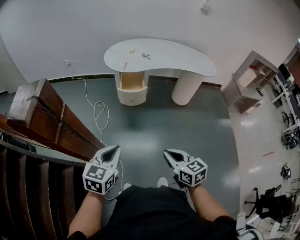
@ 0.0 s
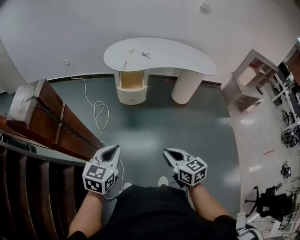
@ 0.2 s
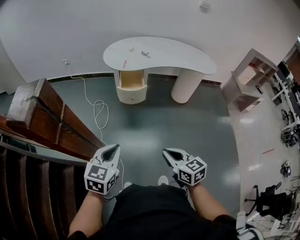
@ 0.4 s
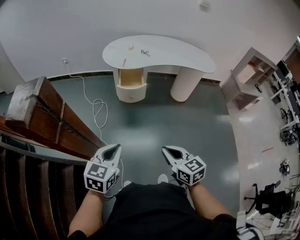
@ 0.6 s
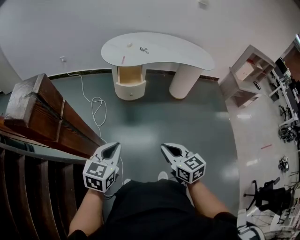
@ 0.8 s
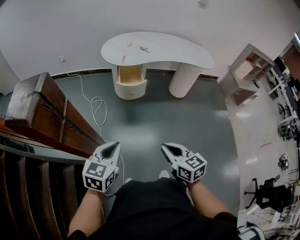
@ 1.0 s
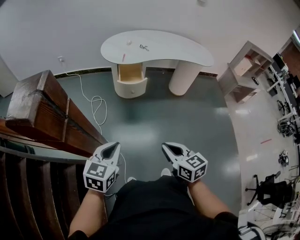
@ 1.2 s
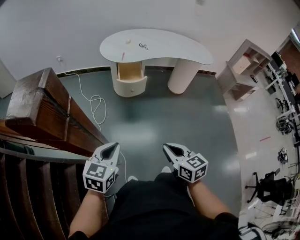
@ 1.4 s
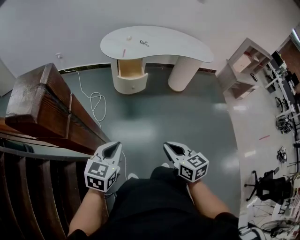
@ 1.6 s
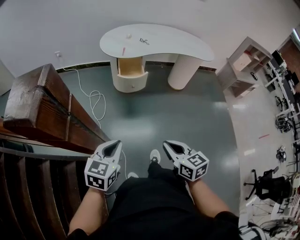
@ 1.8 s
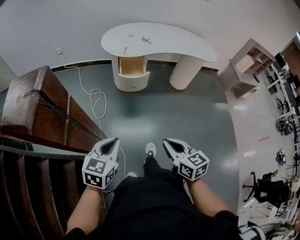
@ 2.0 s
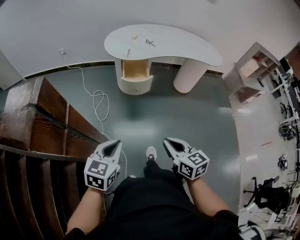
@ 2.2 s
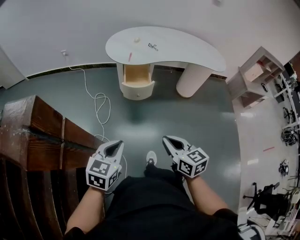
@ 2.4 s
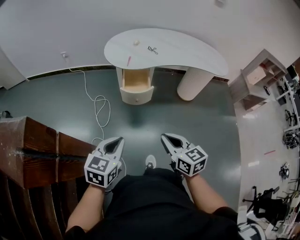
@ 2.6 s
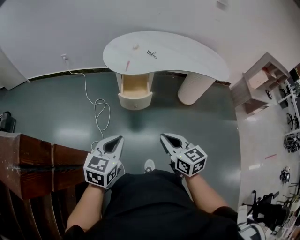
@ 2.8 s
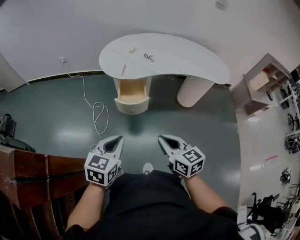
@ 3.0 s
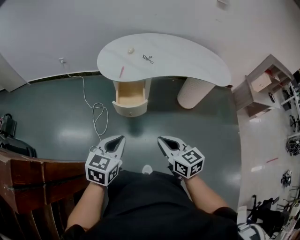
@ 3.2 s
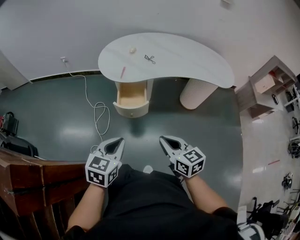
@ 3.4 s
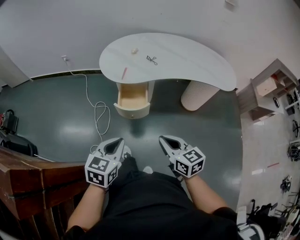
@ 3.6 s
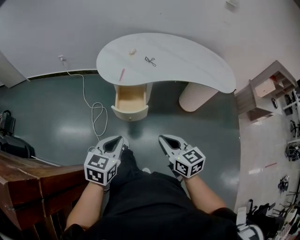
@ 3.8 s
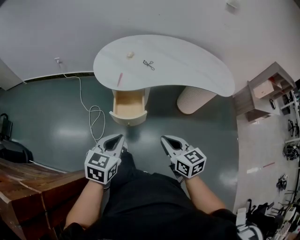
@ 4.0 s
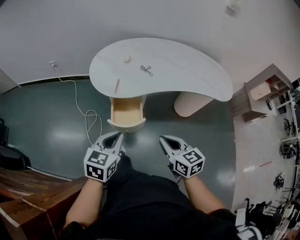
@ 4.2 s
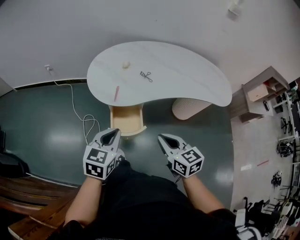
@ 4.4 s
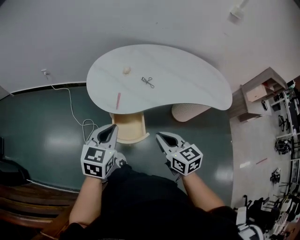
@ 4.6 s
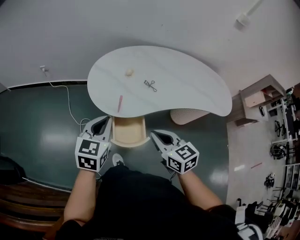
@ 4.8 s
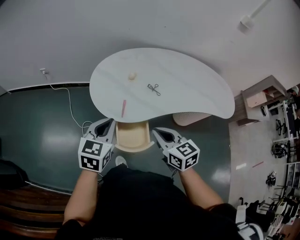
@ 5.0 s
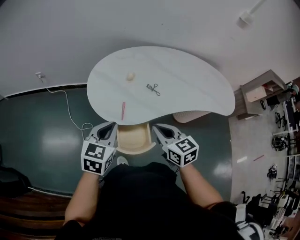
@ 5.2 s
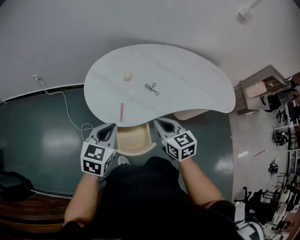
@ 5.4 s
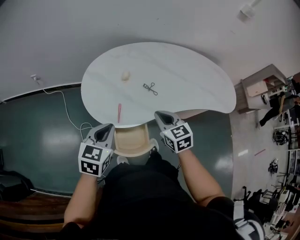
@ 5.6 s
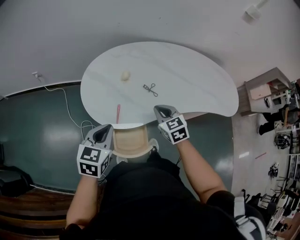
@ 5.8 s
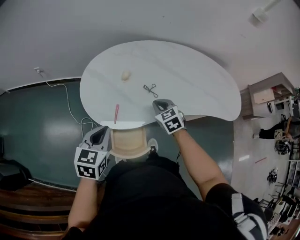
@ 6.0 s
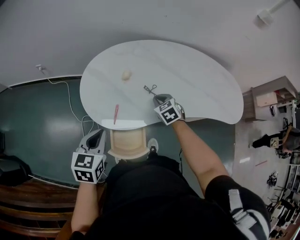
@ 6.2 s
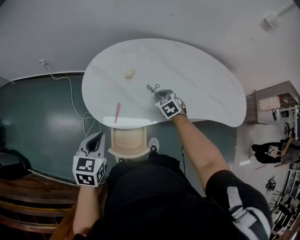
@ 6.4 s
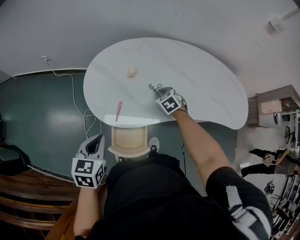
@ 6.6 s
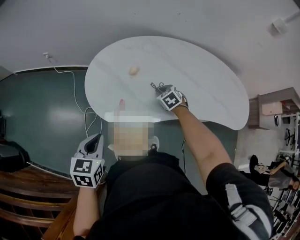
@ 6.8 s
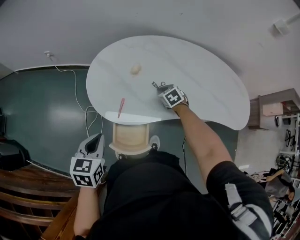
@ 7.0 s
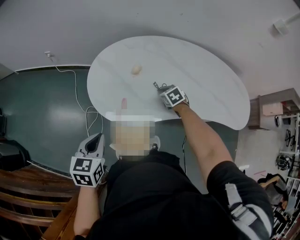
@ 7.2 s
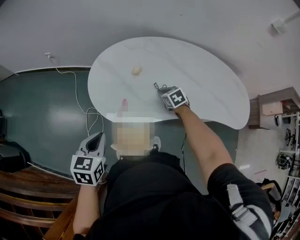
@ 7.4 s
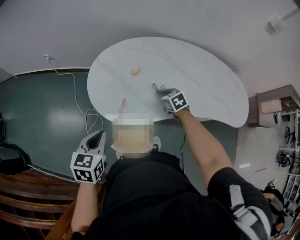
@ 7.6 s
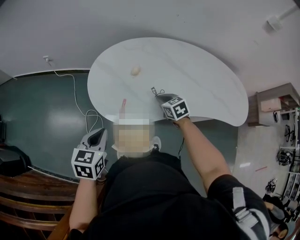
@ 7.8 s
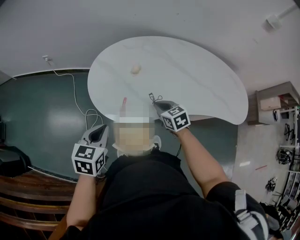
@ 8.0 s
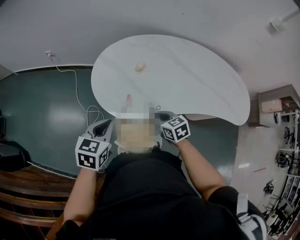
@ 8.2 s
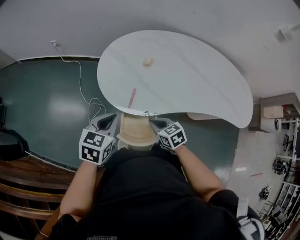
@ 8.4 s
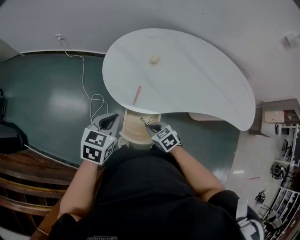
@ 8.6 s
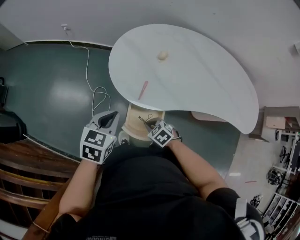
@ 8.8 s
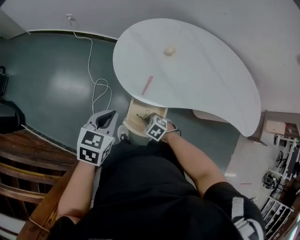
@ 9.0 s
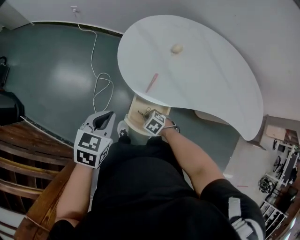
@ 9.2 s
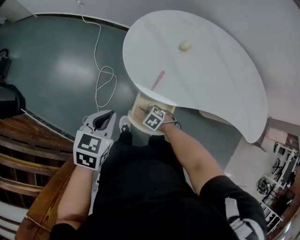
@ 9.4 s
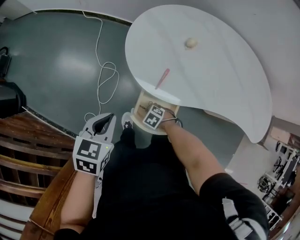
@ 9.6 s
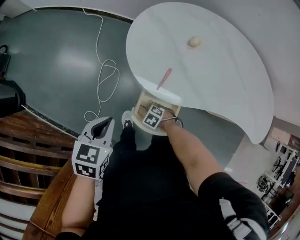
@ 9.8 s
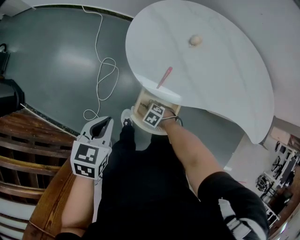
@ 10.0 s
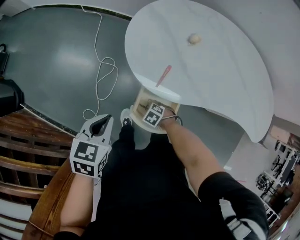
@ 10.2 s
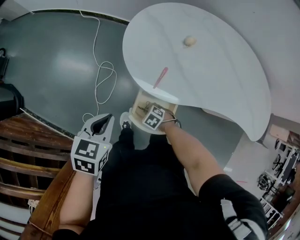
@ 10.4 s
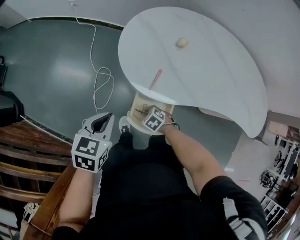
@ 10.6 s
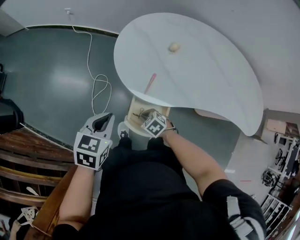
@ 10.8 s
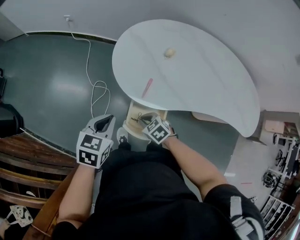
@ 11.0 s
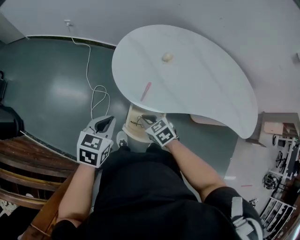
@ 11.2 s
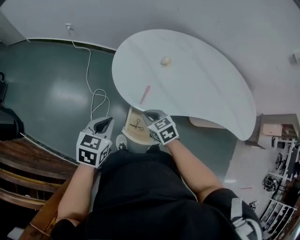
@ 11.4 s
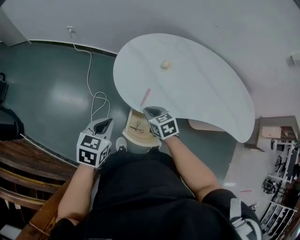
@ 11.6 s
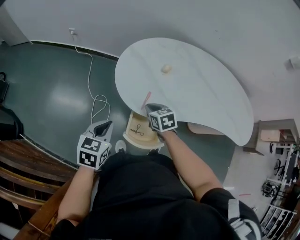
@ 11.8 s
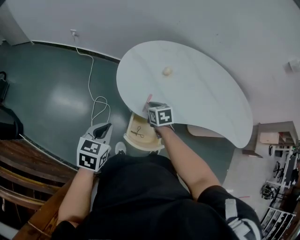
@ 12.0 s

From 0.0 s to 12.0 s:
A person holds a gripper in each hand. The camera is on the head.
From 0.0 s to 1.6 s: The grippers both shift to the left by about 5 cm.
From 1.6 s to 3.0 s: Both grippers travel together forward, about 25 cm.
From 3.0 s to 4.4 s: Both grippers travel together forward, roughly 25 cm.
From 4.4 s to 6.0 s: The left gripper goes about 20 cm forward. The right gripper shifts approximately 35 cm forward, and changes its angle by some 30 degrees.
From 6.0 s to 7.6 s: The left gripper changes place by some 5 cm. The right gripper moves downward and forward, approximately 10 cm.
From 7.6 s to 9.0 s: The left gripper changes place by roughly 5 cm; the right gripper travels to the left, backward and downward by approximately 30 cm, and turns by approximately 40 degrees.
From 9.0 s to 10.4 s: The left gripper shifts by roughly 5 cm, while the right gripper travels downward by roughly 10 cm.
From 10.4 s to 12.0 s: The right gripper goes some 20 cm upward, and rotates some 50 degrees. The left gripper heads upward, covering roughly 5 cm.

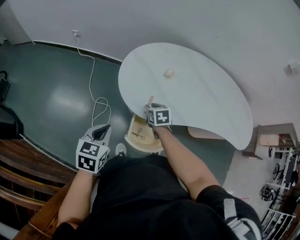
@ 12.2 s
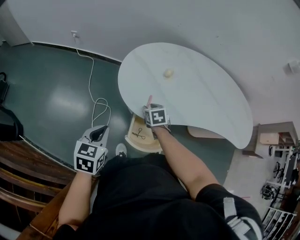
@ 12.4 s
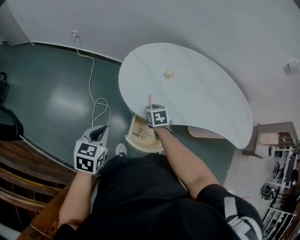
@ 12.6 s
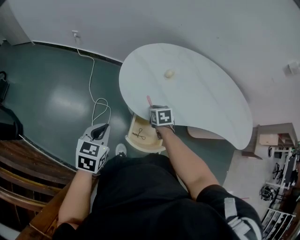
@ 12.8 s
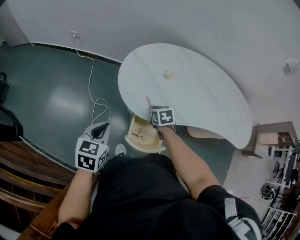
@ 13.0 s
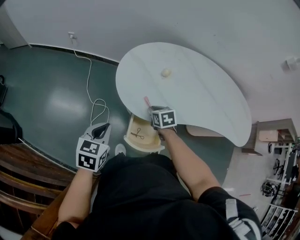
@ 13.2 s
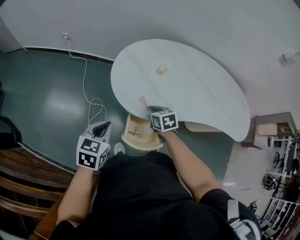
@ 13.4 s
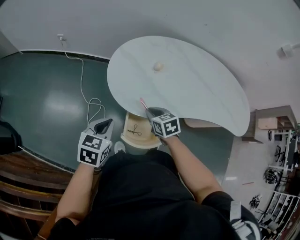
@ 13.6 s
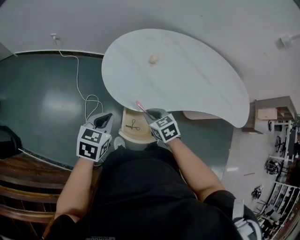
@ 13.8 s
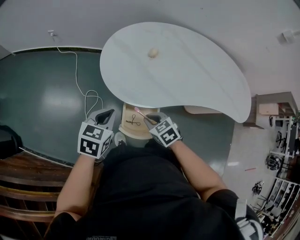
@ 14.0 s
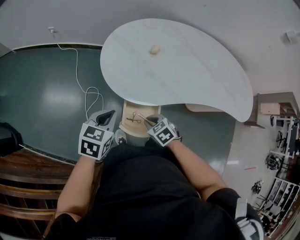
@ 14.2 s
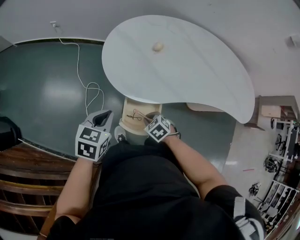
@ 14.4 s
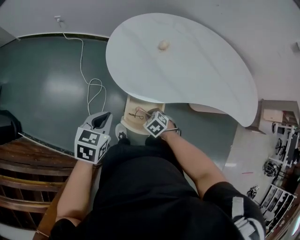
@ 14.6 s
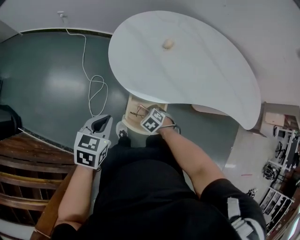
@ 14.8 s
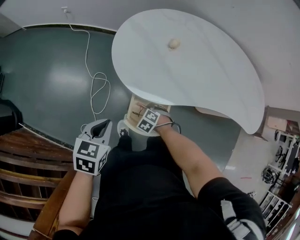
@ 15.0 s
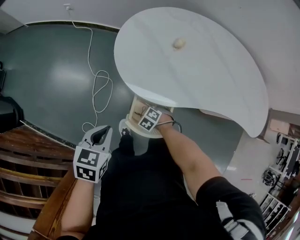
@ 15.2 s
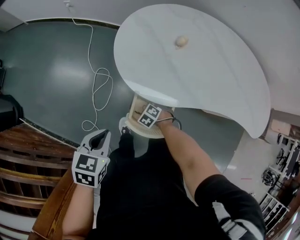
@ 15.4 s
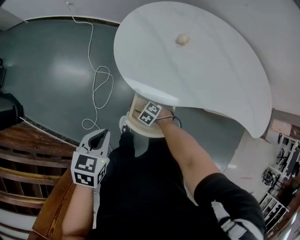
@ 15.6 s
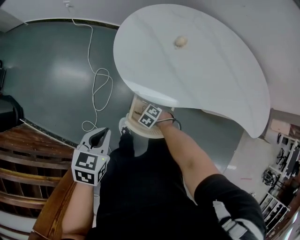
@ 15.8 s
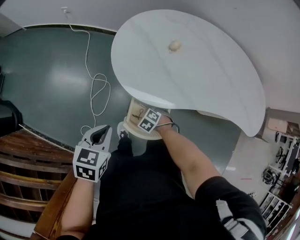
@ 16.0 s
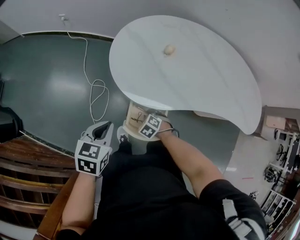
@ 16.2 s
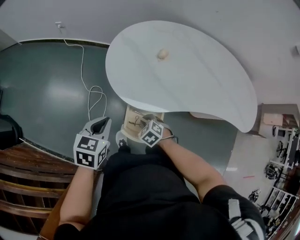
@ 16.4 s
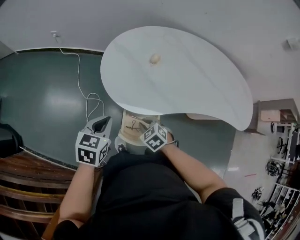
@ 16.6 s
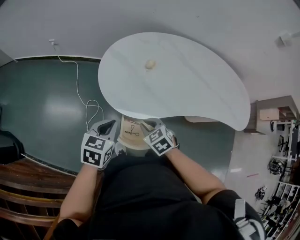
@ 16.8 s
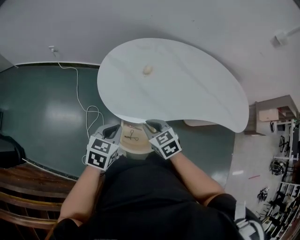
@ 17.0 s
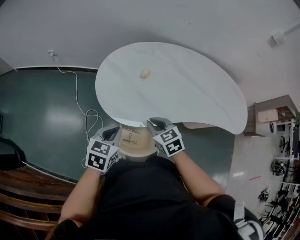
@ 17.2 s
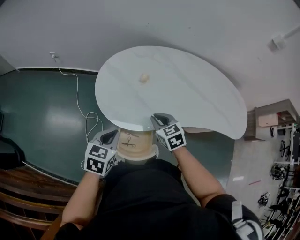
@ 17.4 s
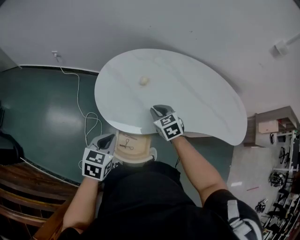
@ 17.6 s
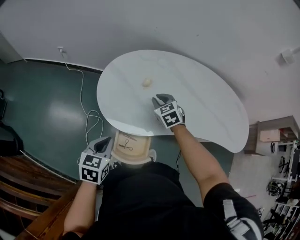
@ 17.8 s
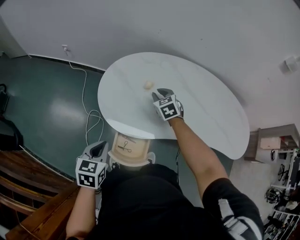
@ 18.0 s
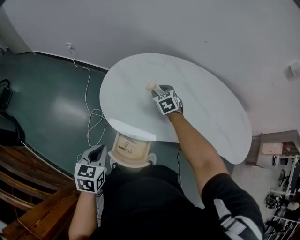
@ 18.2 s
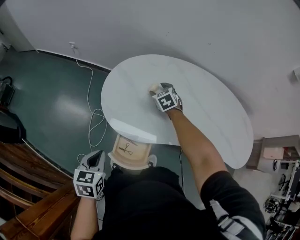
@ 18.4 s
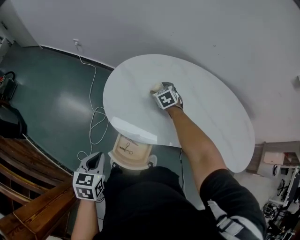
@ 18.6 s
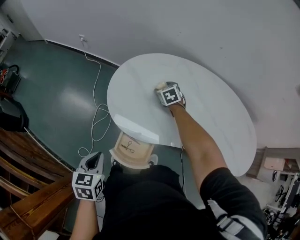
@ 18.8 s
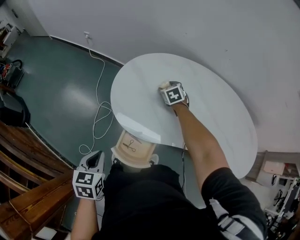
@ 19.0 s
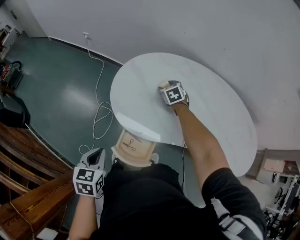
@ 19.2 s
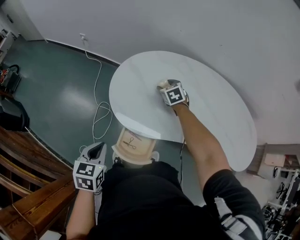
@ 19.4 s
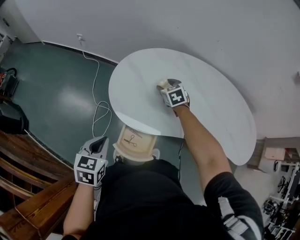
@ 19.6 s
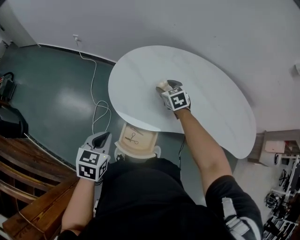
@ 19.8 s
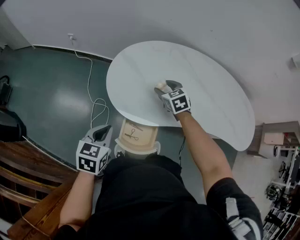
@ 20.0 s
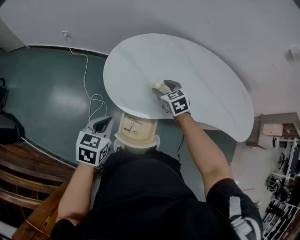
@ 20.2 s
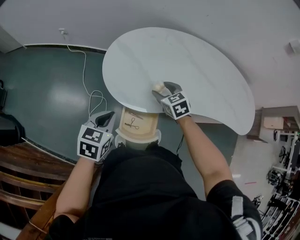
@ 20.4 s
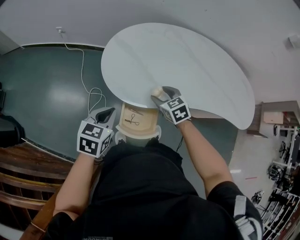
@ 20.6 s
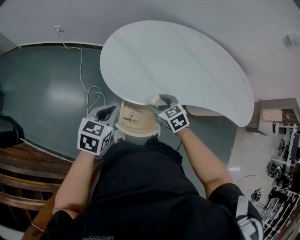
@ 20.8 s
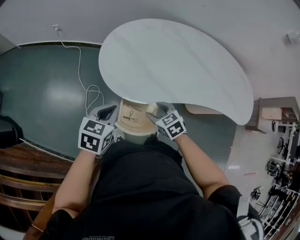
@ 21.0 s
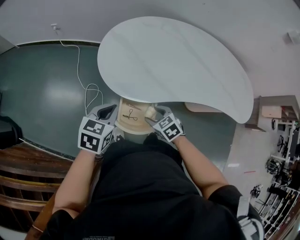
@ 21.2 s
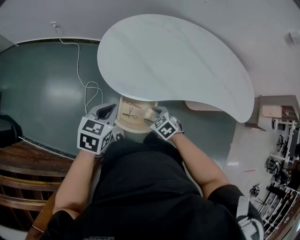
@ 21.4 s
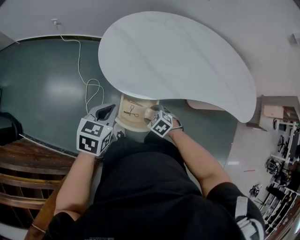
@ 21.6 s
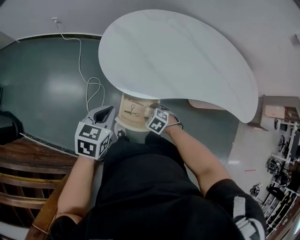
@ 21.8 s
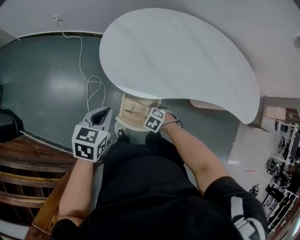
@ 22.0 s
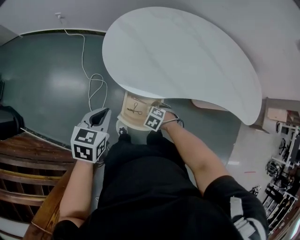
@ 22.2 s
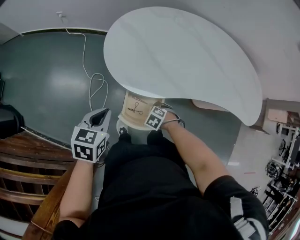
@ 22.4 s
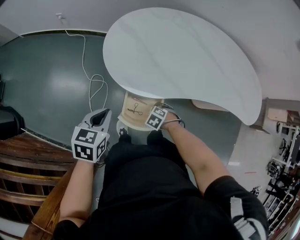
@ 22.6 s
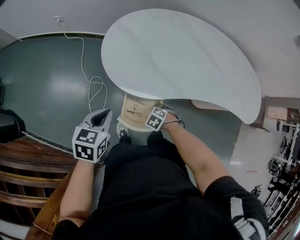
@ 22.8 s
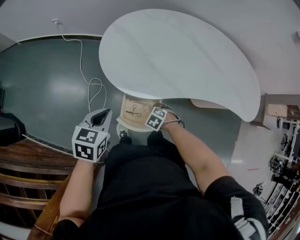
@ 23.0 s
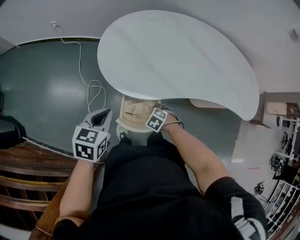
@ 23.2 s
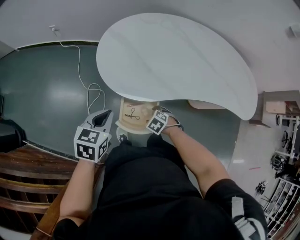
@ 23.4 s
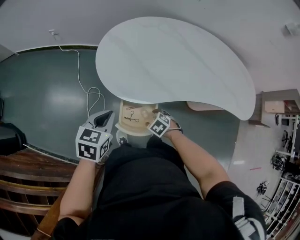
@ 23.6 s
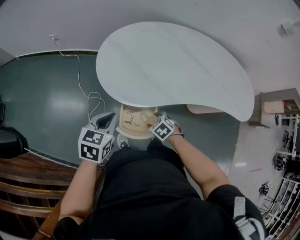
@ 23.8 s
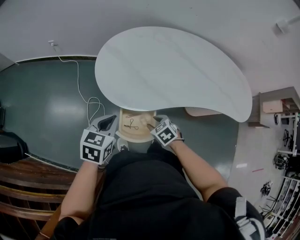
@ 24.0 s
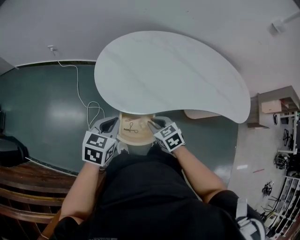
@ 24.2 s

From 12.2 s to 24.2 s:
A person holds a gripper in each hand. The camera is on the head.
From 12.2 s to 13.8 s: The left gripper shifts by approximately 5 cm. The right gripper heads backward, covering approximately 10 cm.
From 13.8 s to 15.2 s: The right gripper travels downward by some 25 cm, and swivels roughly 50 degrees, while the left gripper moves some 10 cm.
From 15.2 s to 16.6 s: The right gripper heads upward, covering approximately 15 cm, and swivels some 30 degrees, while the left gripper changes place by about 10 cm.
From 16.6 s to 18.2 s: The right gripper is displaced forward by about 30 cm, and opens up; the left gripper shifts by approximately 5 cm.
From 18.2 s to 19.8 s: The right gripper opens its fingers.
From 19.8 s to 21.2 s: The right gripper shifts some 30 cm backward.
From 21.2 s to 22.6 s: The right gripper goes some 15 cm downward, and rotates some 40 degrees. Meanwhile the left gripper shifts by about 5 cm.
From 22.6 s to 24.2 s: The left gripper moves roughly 10 cm. The right gripper moves upward, approximately 20 cm, tips its fingers upward by about 30 degrees, and closes up.
